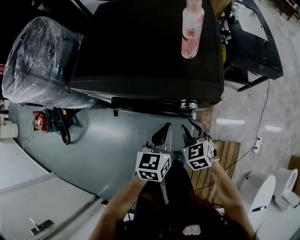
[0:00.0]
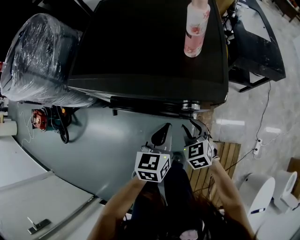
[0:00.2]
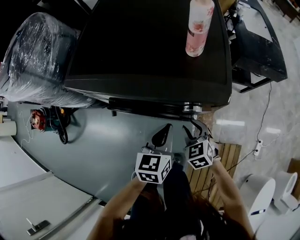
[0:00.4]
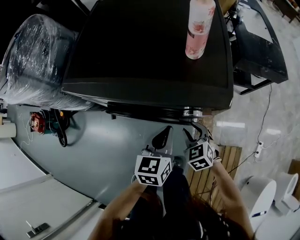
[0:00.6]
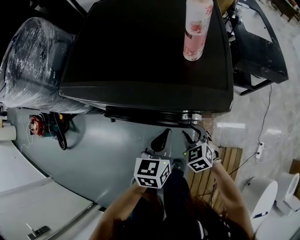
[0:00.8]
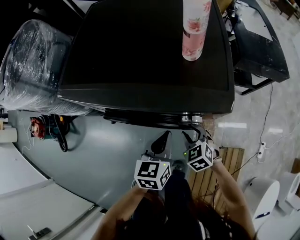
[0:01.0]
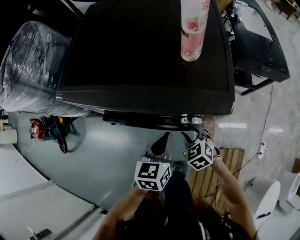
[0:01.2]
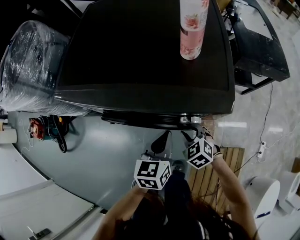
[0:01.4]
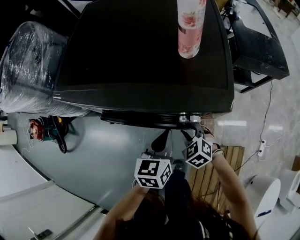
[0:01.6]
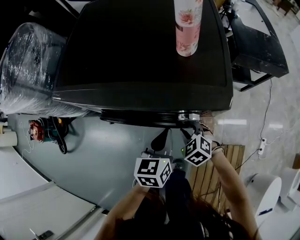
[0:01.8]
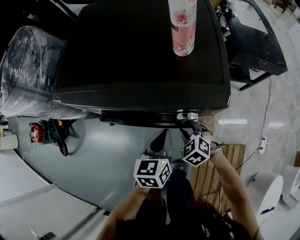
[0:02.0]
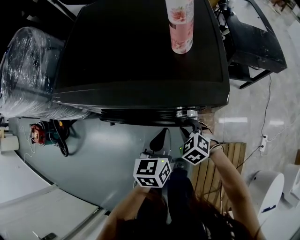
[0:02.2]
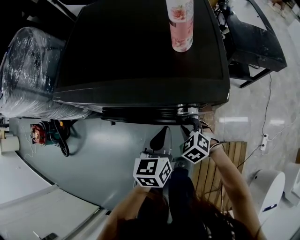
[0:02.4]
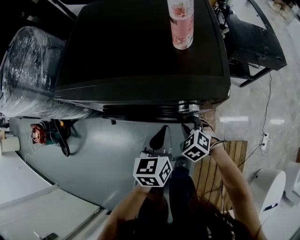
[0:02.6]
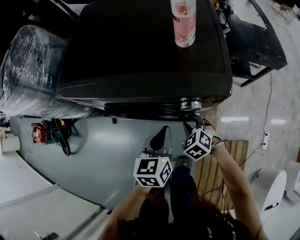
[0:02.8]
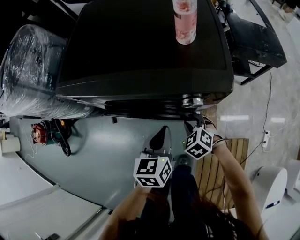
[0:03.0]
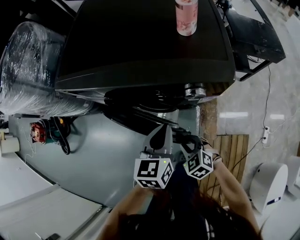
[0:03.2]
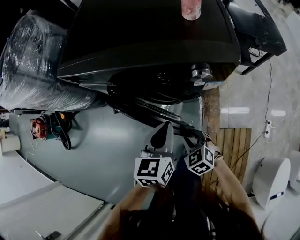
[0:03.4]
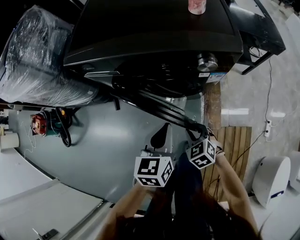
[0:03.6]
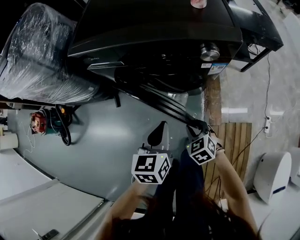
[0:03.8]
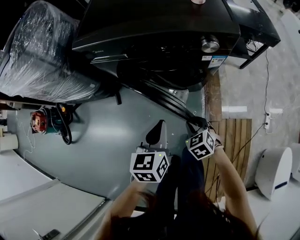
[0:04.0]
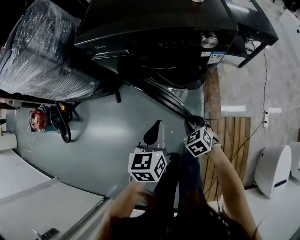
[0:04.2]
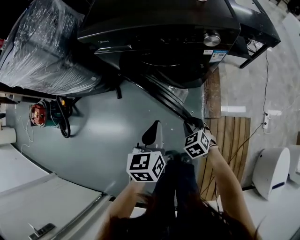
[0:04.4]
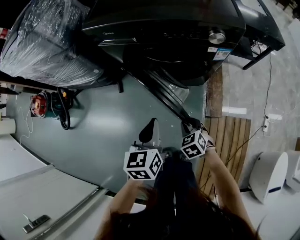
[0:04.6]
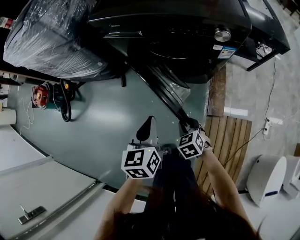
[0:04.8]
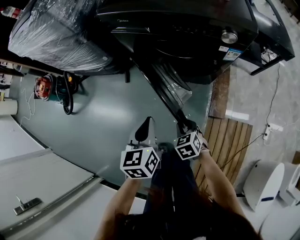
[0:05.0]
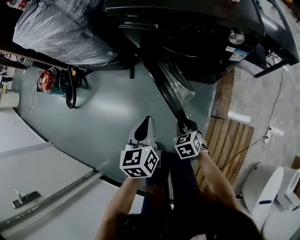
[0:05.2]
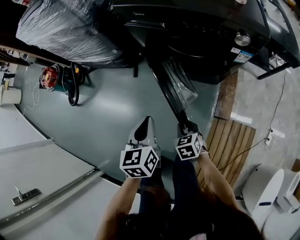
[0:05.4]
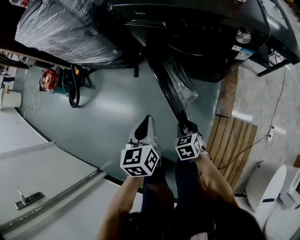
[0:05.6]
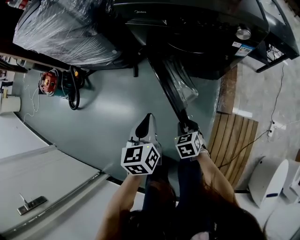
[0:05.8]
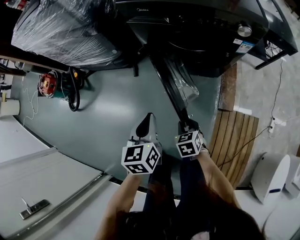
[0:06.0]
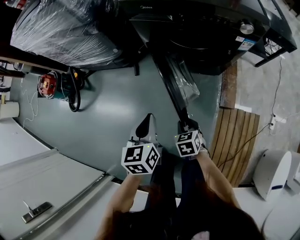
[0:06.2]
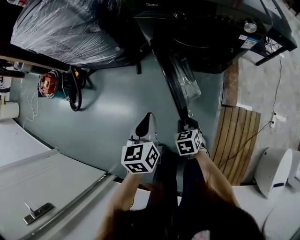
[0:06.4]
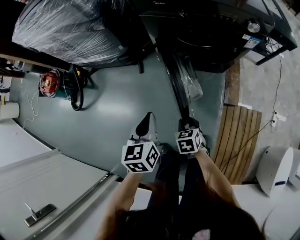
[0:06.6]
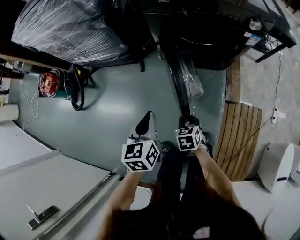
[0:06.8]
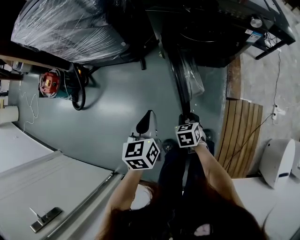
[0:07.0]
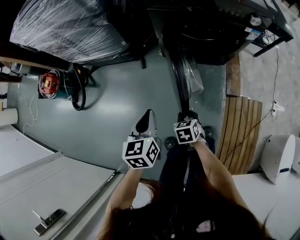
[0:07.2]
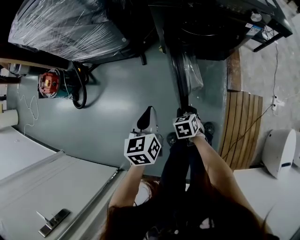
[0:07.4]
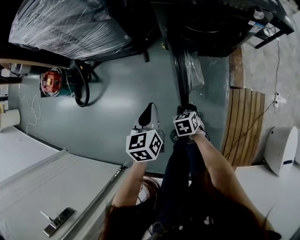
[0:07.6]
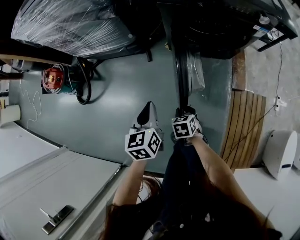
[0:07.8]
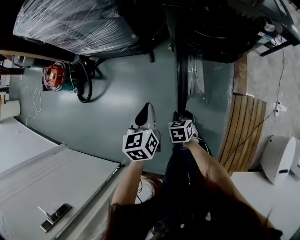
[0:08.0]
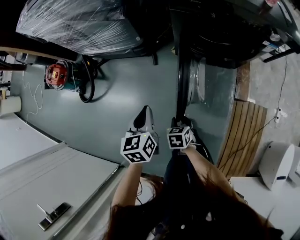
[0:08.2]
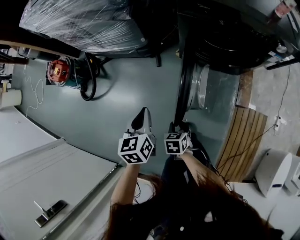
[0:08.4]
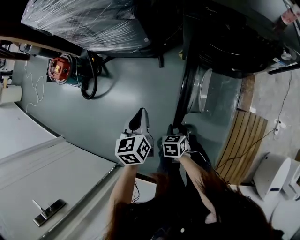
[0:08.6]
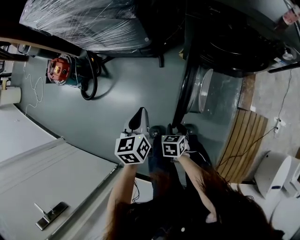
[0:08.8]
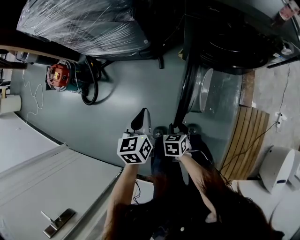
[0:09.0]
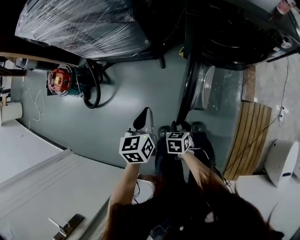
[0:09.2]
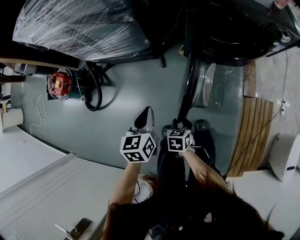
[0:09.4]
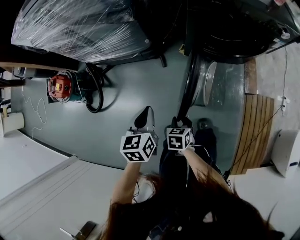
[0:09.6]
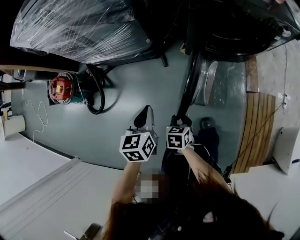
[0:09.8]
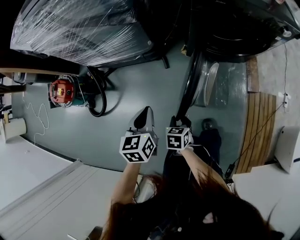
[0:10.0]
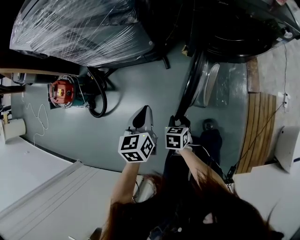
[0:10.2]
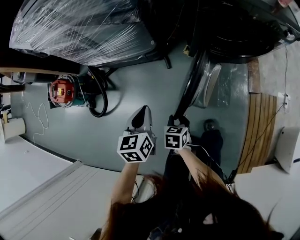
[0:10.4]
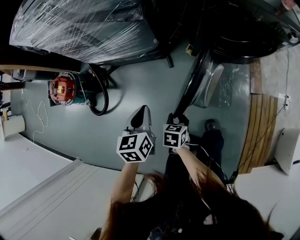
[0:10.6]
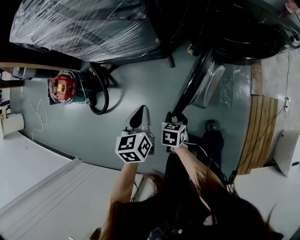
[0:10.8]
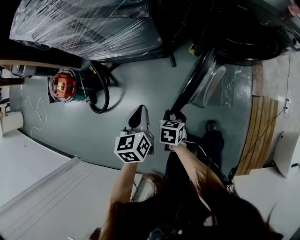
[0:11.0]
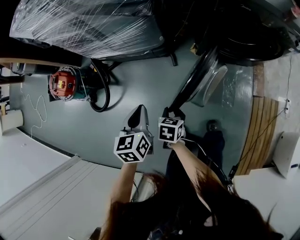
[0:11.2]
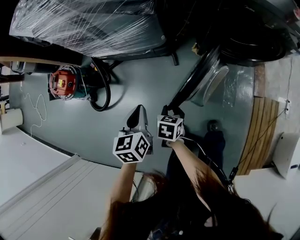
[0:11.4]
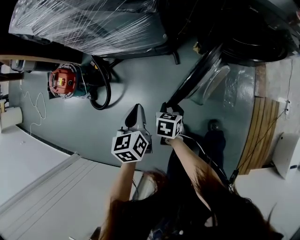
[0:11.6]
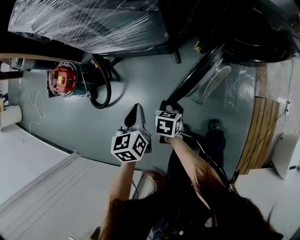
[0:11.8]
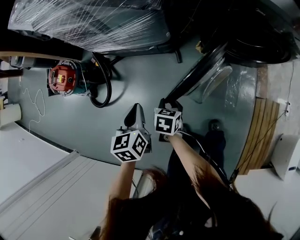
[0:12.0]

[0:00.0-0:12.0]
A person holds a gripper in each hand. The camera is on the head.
0.0 to 1.6 s: The right gripper moves downward, approximately 10 cm. The left gripper heads downward, covering some 10 cm.
1.6 to 3.0 s: The grippers stay close to where they were, moving slightly.
3.0 to 4.4 s: The two grippers go about 25 cm backward and to the left.
4.4 to 6.0 s: The left gripper goes some 15 cm to the left; the right gripper travels to the left and backward by some 15 cm.
6.0 to 7.6 s: The two grippers go approximately 20 cm to the left.
7.6 to 9.0 s: The left gripper moves to the left and forward, about 15 cm, while the right gripper moves to the left, approximately 10 cm.
9.0 to 10.4 s: The grippers both shift to the left by some 10 cm.
10.4 to 12.0 s: The left gripper is displaced to the left by approximately 10 cm; the right gripper is displaced to the left and forward by some 15 cm.

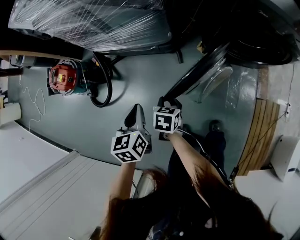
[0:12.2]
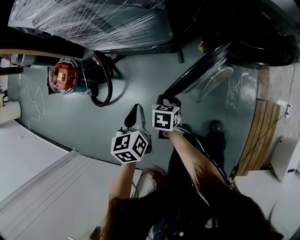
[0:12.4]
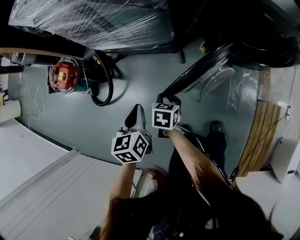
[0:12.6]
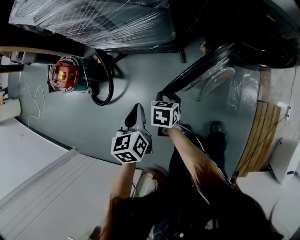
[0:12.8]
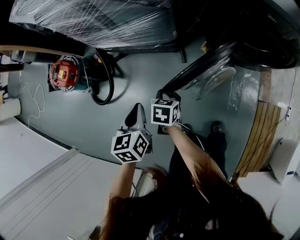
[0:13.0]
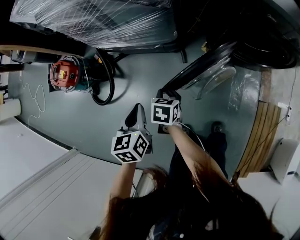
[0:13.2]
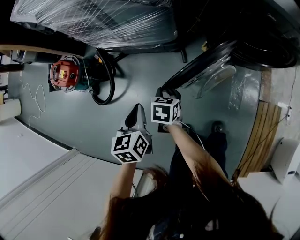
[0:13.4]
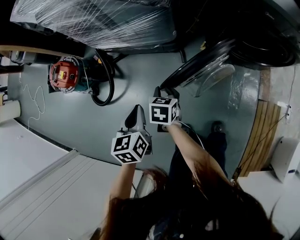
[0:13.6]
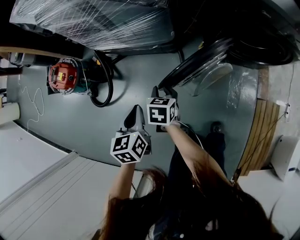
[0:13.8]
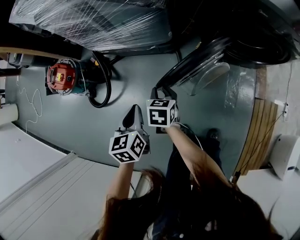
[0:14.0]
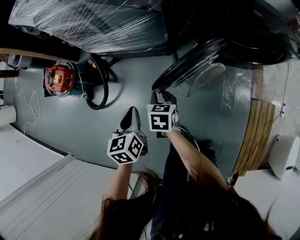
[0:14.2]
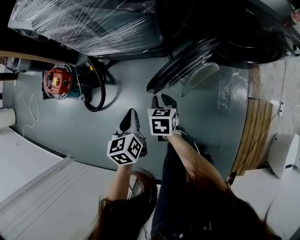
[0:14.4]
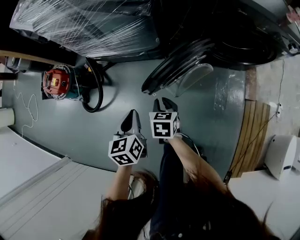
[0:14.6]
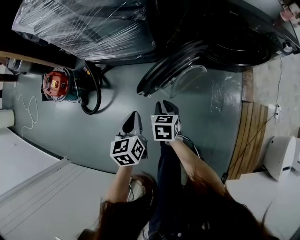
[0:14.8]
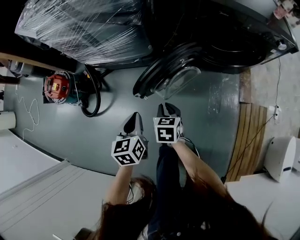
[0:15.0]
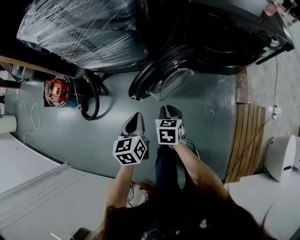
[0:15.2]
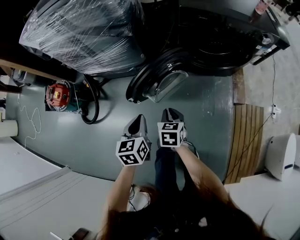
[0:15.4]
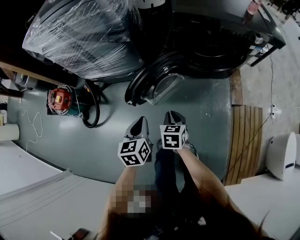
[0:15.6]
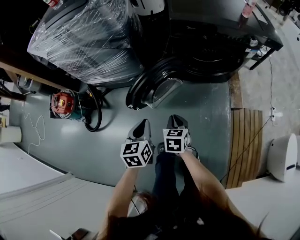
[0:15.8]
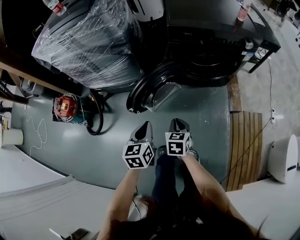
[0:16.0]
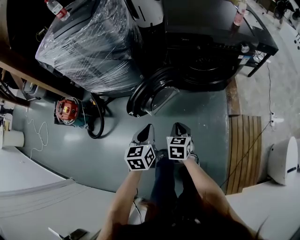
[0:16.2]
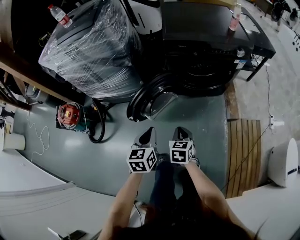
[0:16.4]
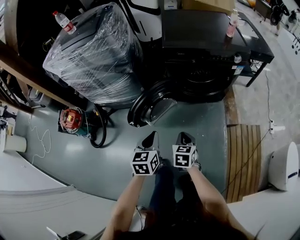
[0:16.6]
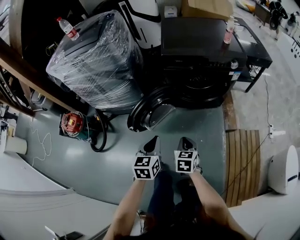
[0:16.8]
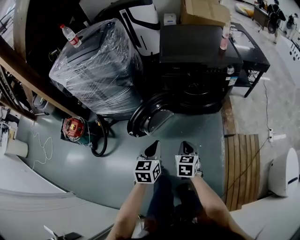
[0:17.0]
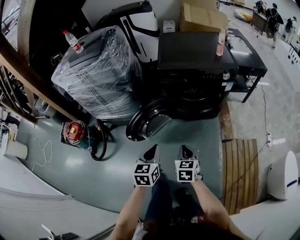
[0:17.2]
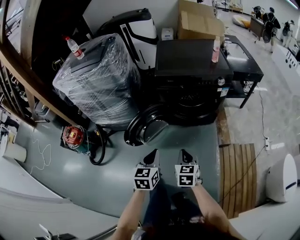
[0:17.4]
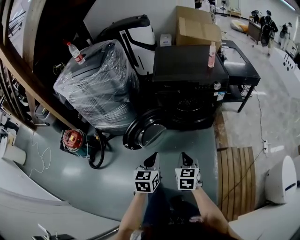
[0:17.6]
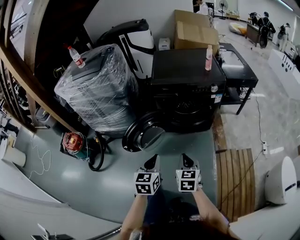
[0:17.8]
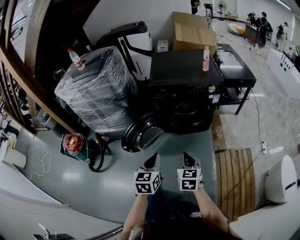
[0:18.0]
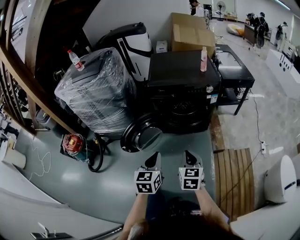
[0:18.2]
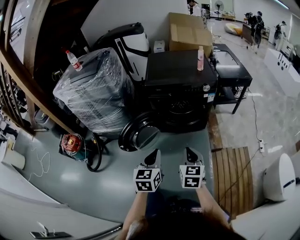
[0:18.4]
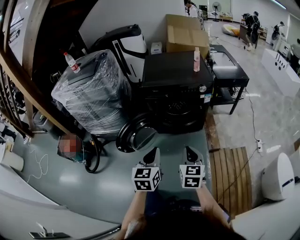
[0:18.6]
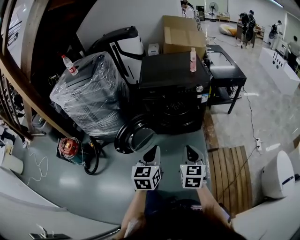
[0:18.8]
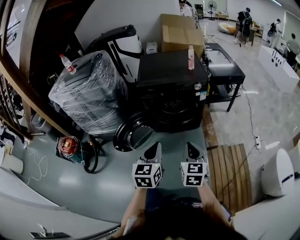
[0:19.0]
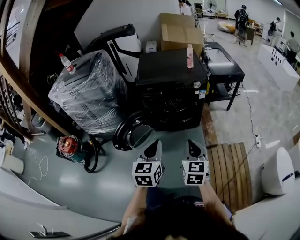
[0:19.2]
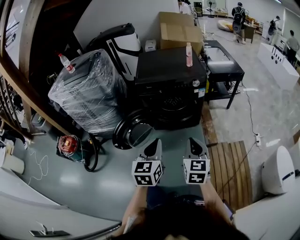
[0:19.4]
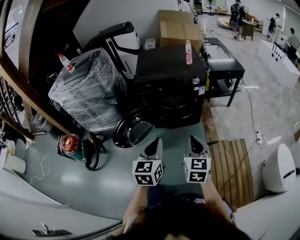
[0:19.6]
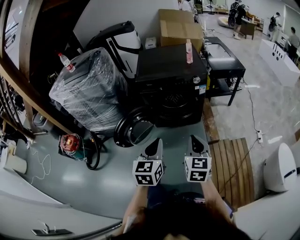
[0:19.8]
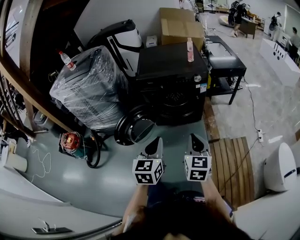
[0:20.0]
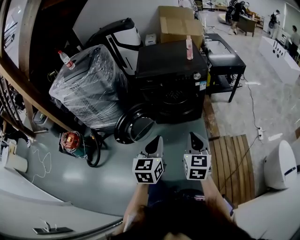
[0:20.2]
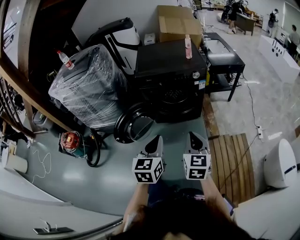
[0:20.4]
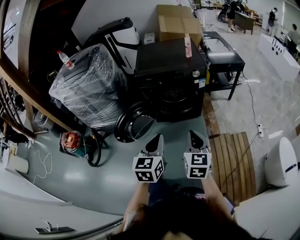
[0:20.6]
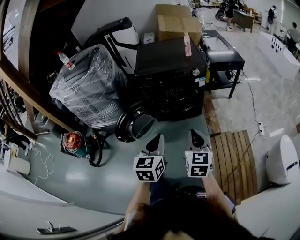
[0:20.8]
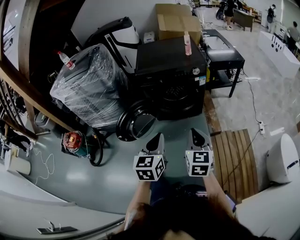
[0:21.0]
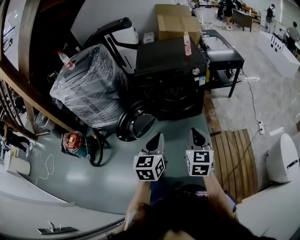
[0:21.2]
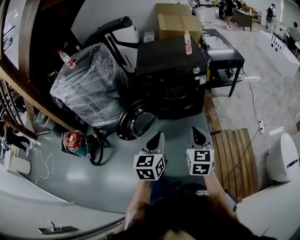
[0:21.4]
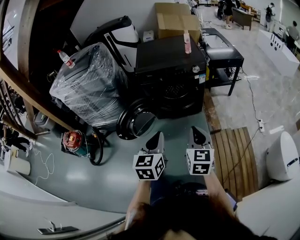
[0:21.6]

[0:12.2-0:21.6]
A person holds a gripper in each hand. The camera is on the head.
12.2 to 13.8 s: The right gripper ends up approximately 5 cm from where it was.
13.8 to 15.4 s: The right gripper is displaced to the right and backward by roughly 25 cm. The left gripper goes some 20 cm to the right.
15.4 to 17.0 s: The two grippers go about 25 cm to the right and upward.
17.0 to 18.4 s: The right gripper goes some 20 cm upward and to the right. Meanwhile the left gripper goes roughly 15 cm to the right, upward and backward.
18.4 to 20.0 s: The left gripper shifts some 5 cm to the right. Meanwhile the right gripper goes approximately 10 cm to the right and upward.
20.0 to 21.6 s: The grippers stay close to where they were, moving slightly.

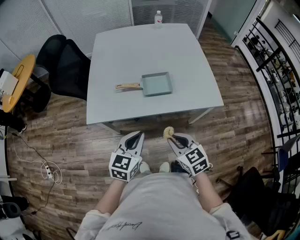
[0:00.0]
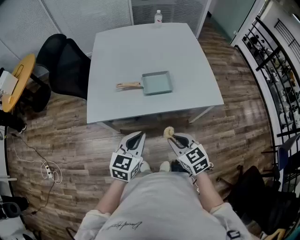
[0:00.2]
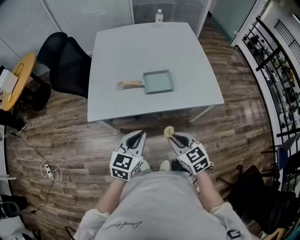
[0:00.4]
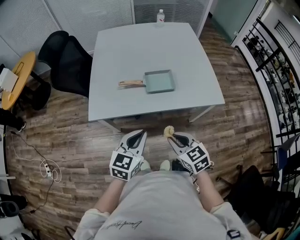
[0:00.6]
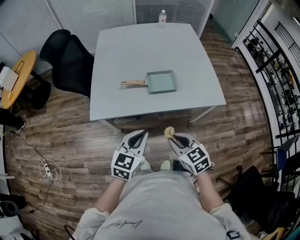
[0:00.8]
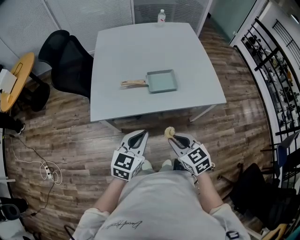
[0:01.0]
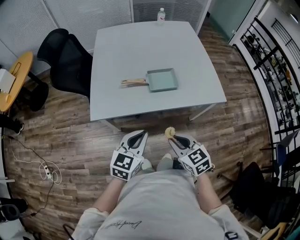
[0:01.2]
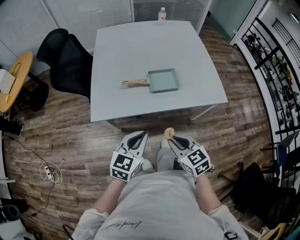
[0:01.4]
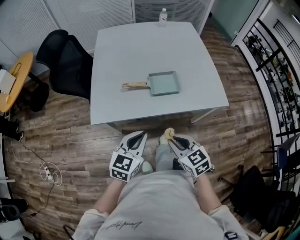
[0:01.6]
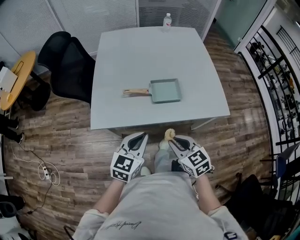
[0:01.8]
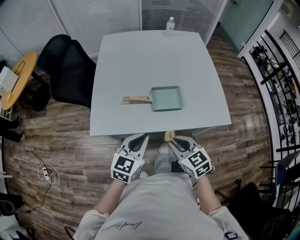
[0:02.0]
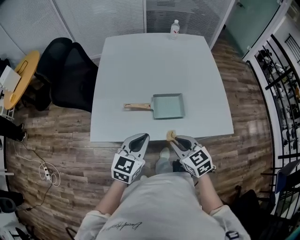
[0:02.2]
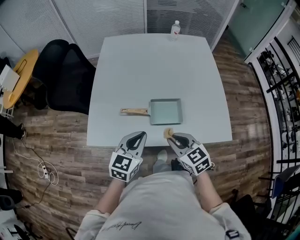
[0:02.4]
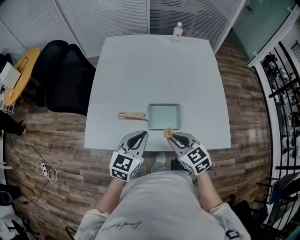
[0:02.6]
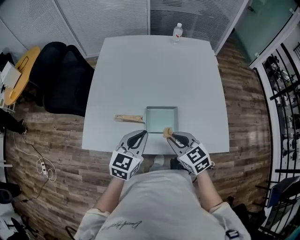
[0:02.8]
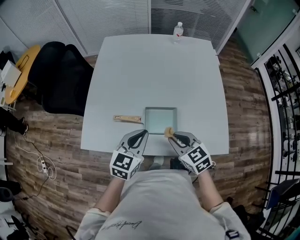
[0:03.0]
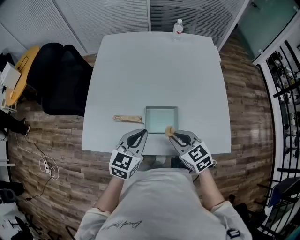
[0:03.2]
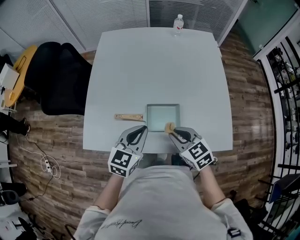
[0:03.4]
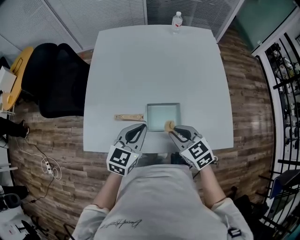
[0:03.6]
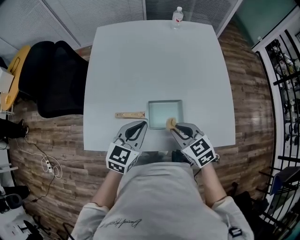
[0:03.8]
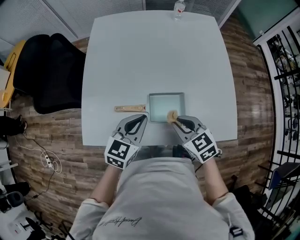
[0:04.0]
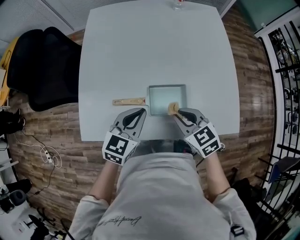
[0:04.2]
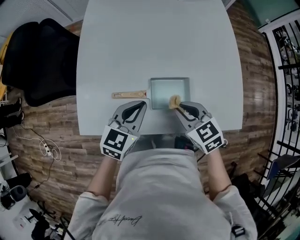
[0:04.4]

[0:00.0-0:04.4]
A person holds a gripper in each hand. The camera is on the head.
0.0 to 1.4 s: The right gripper ends up some 5 cm from where it was.
1.4 to 3.0 s: Both grippers travel together forward and to the right, approximately 25 cm.
3.0 to 4.4 s: The left gripper shifts by about 5 cm.
